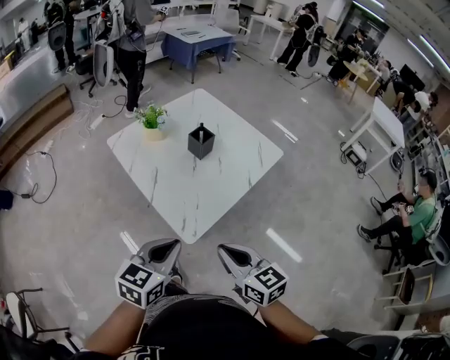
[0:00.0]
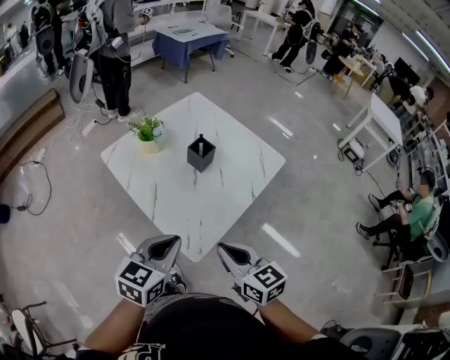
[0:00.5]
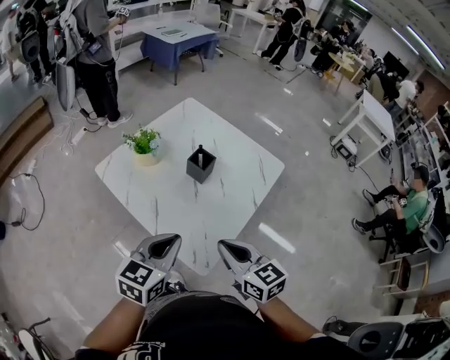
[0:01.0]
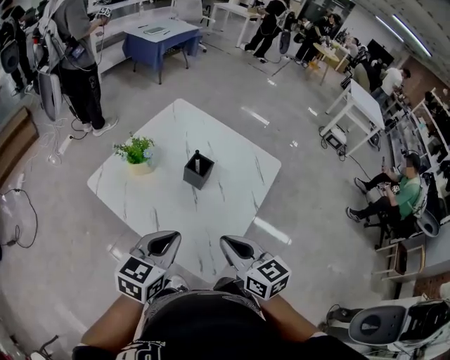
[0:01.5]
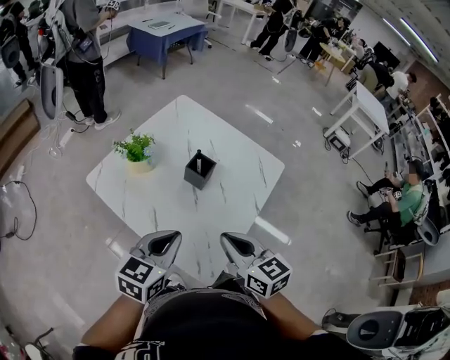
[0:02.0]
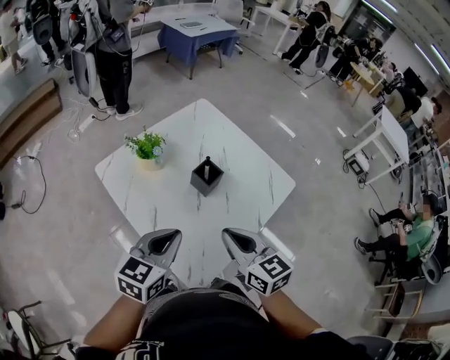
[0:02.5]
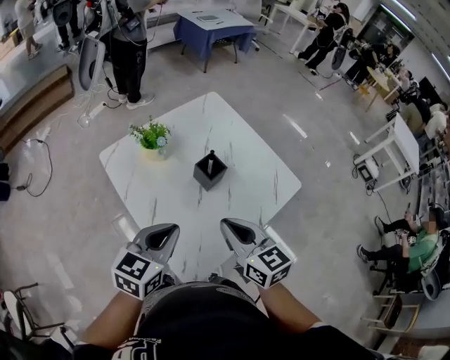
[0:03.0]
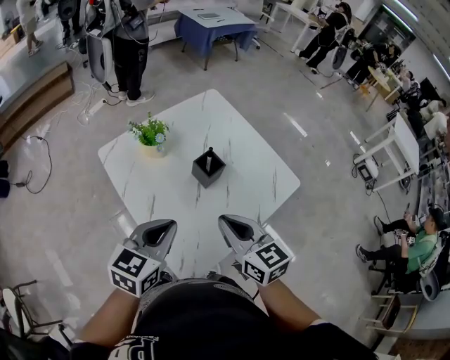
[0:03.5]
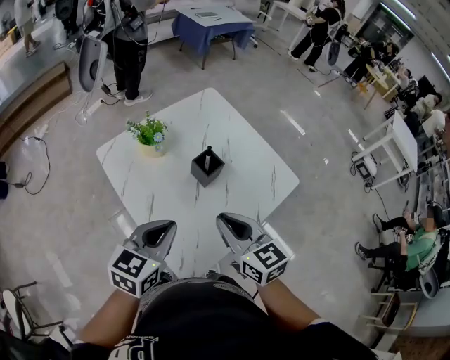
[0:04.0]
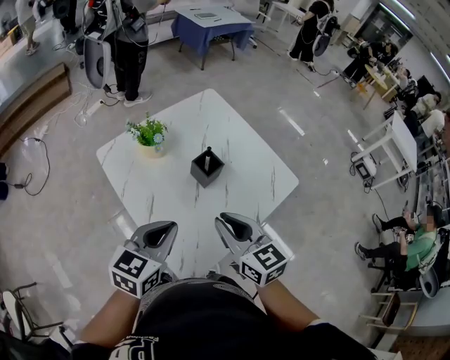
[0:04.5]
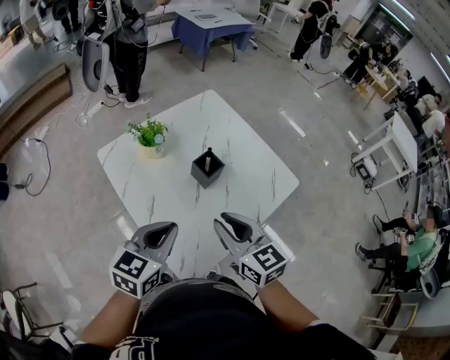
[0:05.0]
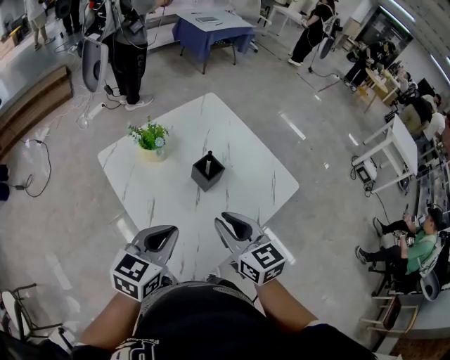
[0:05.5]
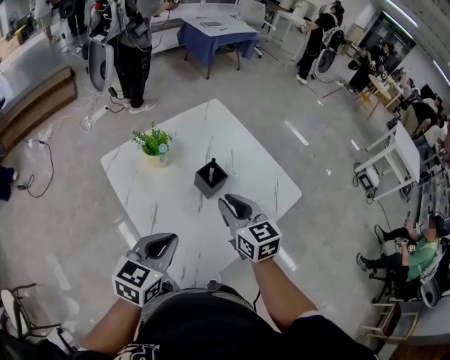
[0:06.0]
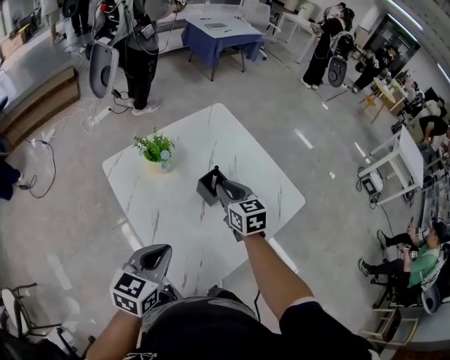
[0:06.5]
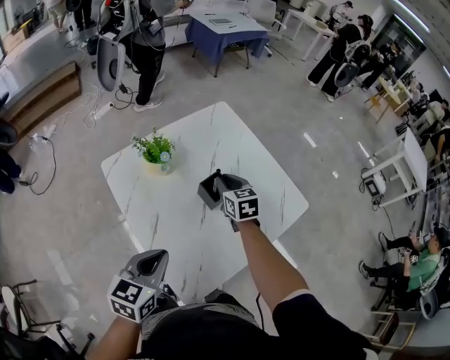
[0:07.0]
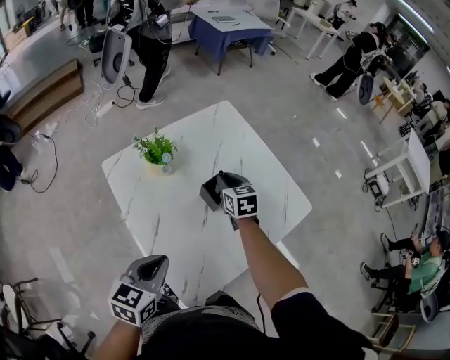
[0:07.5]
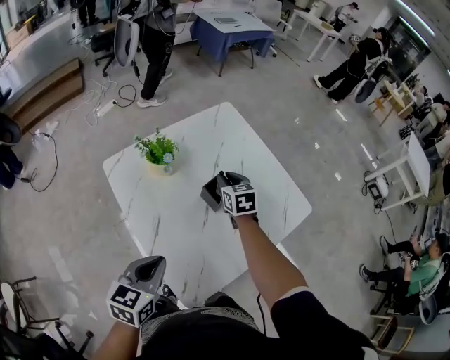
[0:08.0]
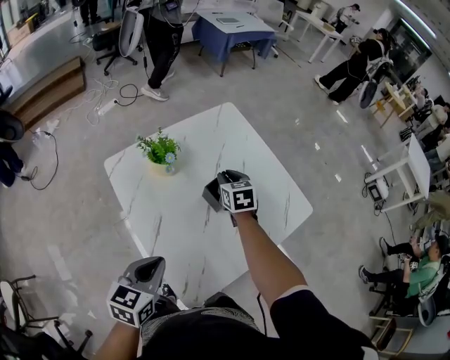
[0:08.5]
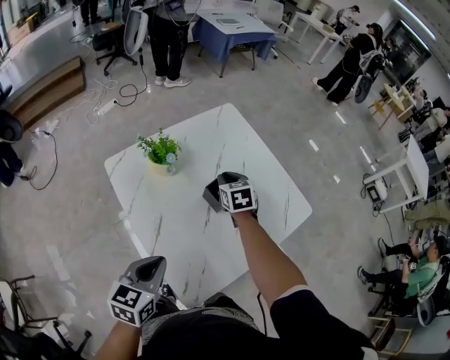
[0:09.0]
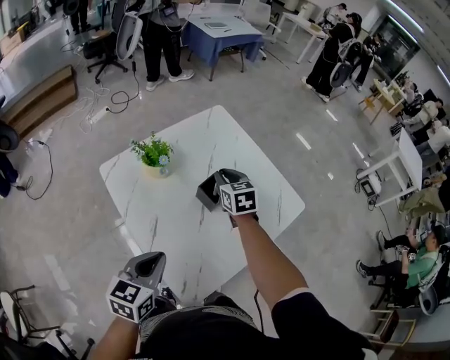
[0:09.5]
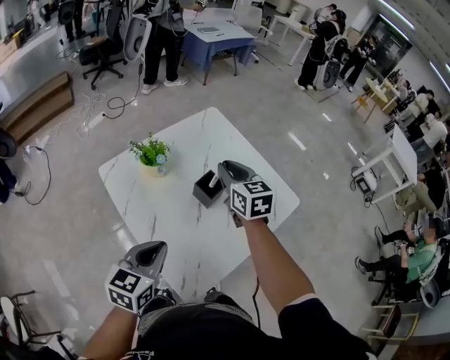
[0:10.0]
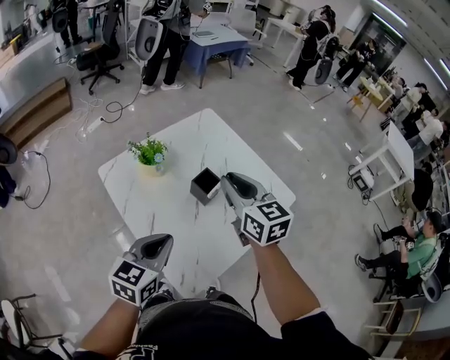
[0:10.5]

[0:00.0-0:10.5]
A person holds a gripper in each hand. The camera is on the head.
0:00.0 to 0:02.0: The two grippers go approximately 20 cm forward.
0:02.0 to 0:04.0: The right gripper goes roughly 5 cm forward.
0:04.0 to 0:06.5: The right gripper is displaced forward and downward by about 20 cm.
0:06.5 to 0:08.5: The right gripper travels forward and downward by approximately 10 cm.
0:08.5 to 0:10.5: The right gripper goes some 25 cm upward and backward, and rotates some 30 degrees, while the left gripper changes place by approximately 5 cm.

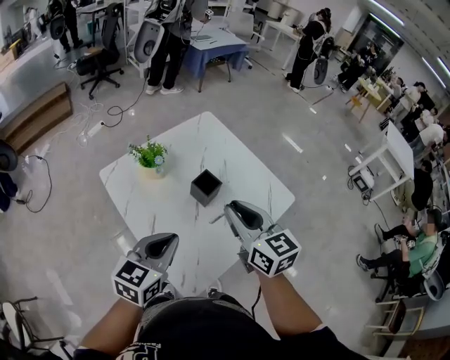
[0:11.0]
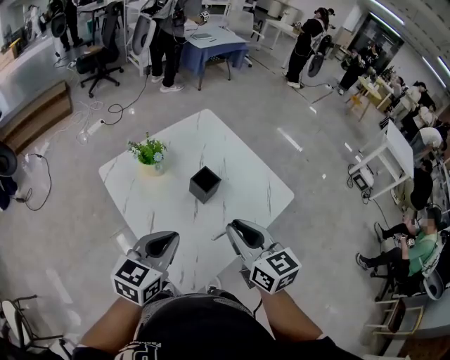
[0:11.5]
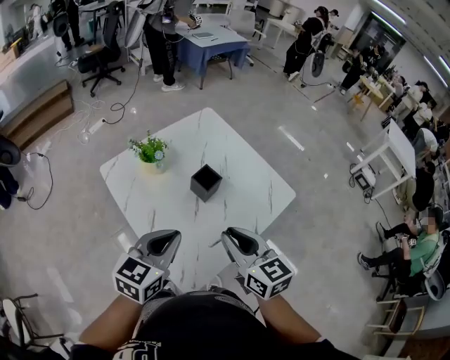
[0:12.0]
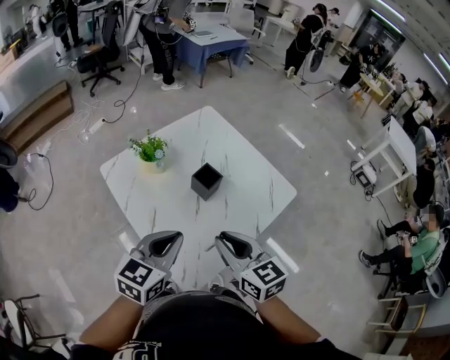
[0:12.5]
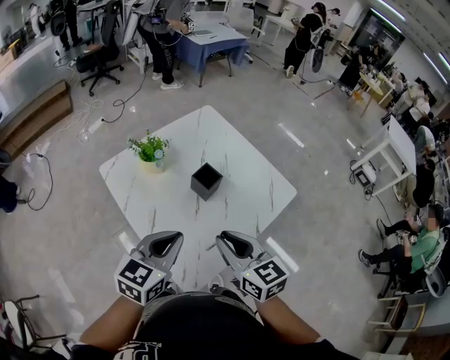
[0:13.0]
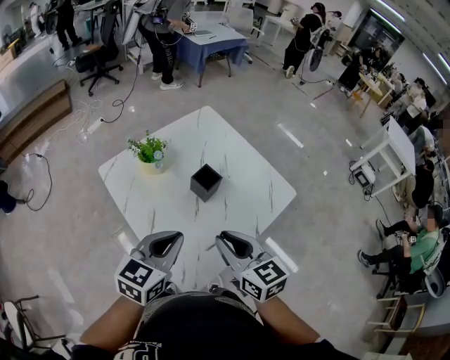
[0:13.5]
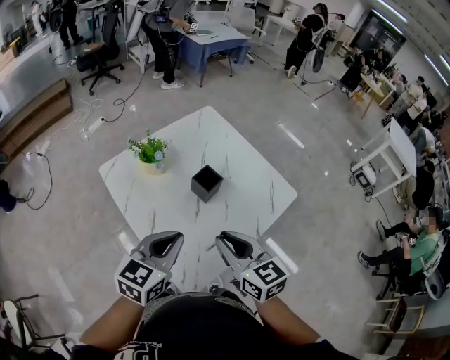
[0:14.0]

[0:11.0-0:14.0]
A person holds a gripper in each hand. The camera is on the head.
0:11.0 to 0:12.5: The right gripper goes some 10 cm backward and downward.
0:12.5 to 0:14.0: The two grippers keep their place.

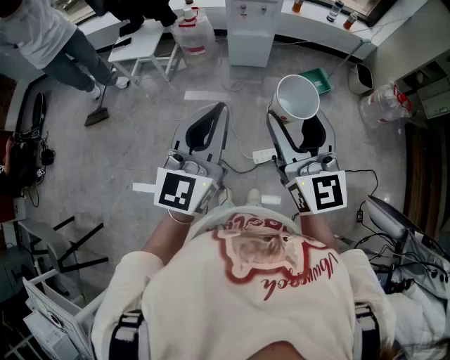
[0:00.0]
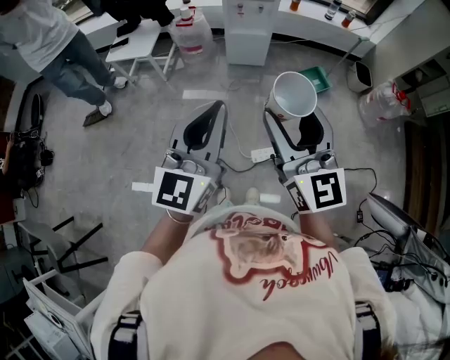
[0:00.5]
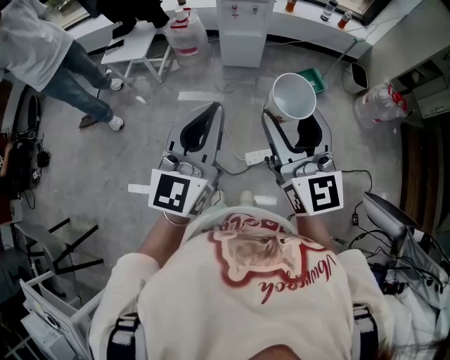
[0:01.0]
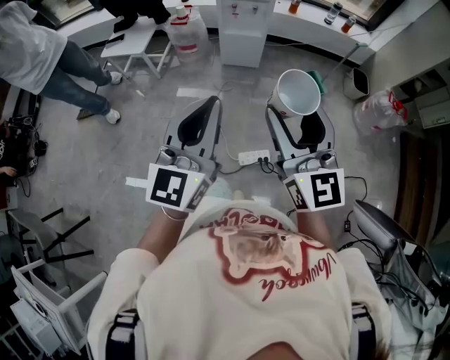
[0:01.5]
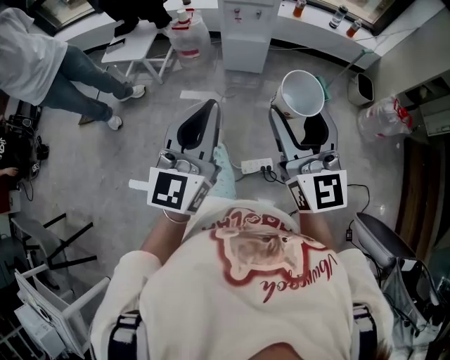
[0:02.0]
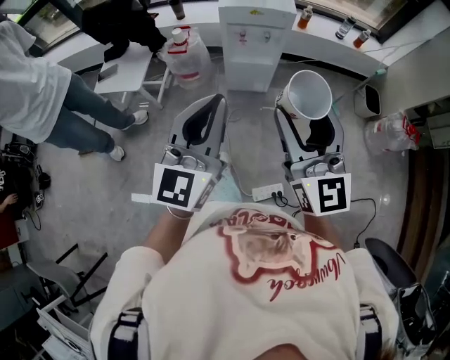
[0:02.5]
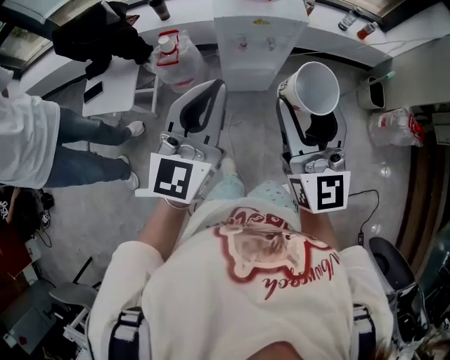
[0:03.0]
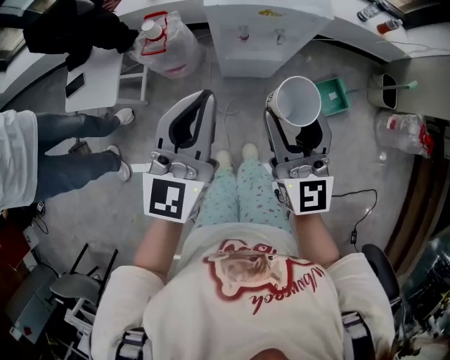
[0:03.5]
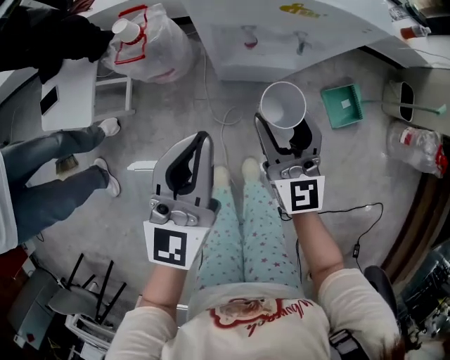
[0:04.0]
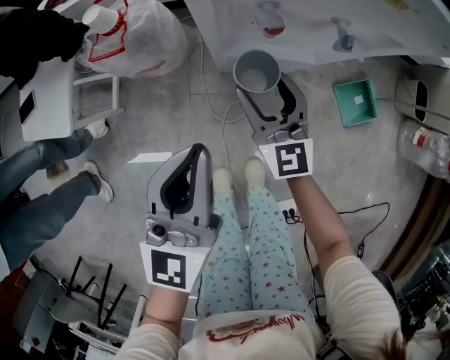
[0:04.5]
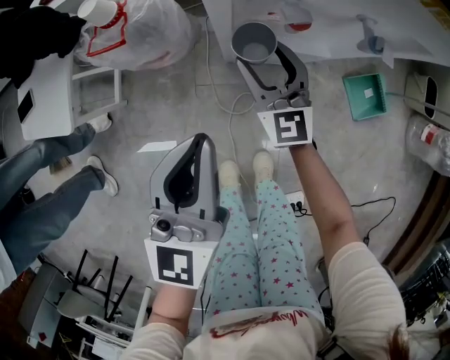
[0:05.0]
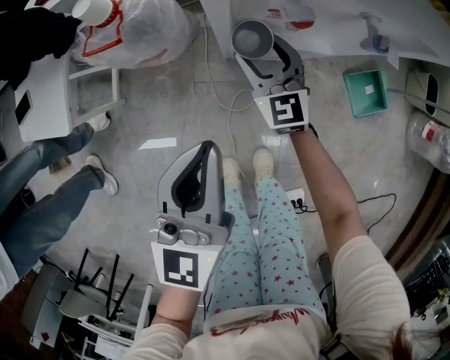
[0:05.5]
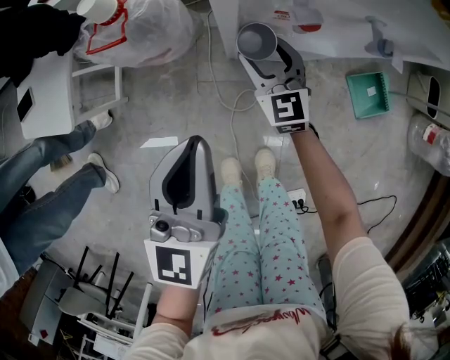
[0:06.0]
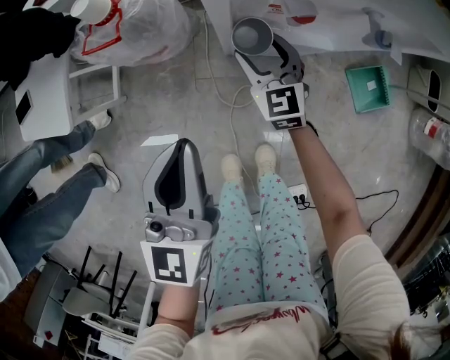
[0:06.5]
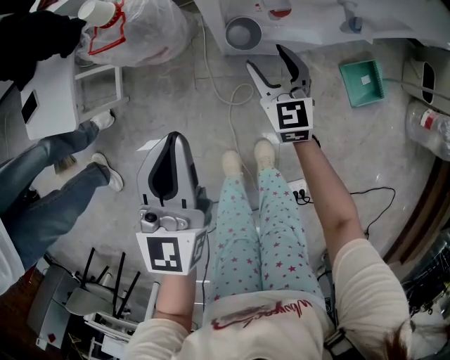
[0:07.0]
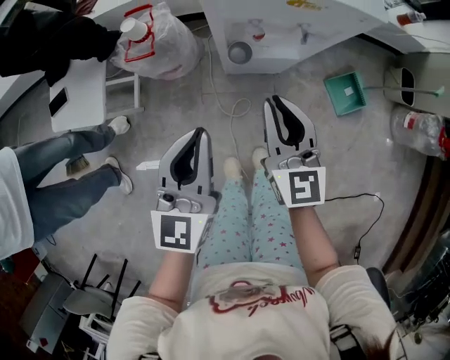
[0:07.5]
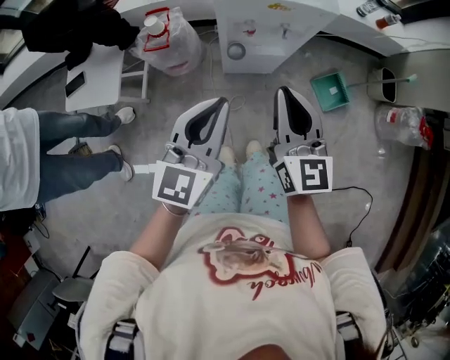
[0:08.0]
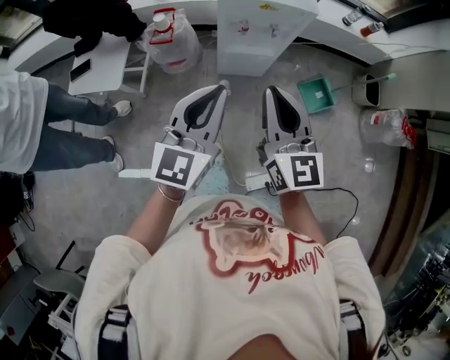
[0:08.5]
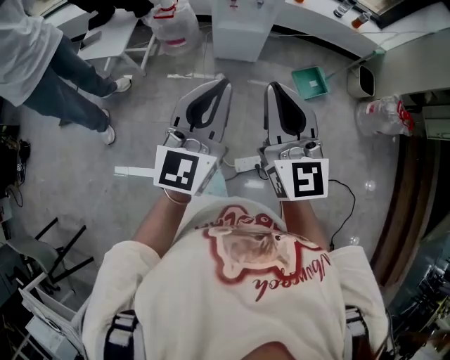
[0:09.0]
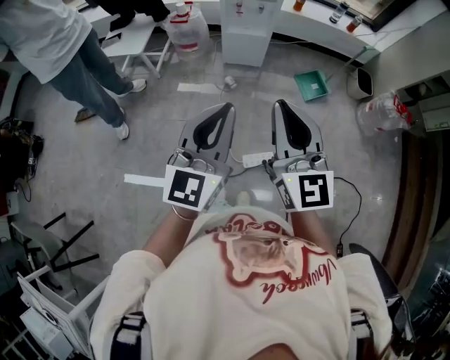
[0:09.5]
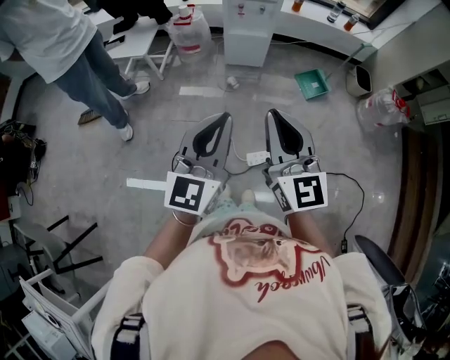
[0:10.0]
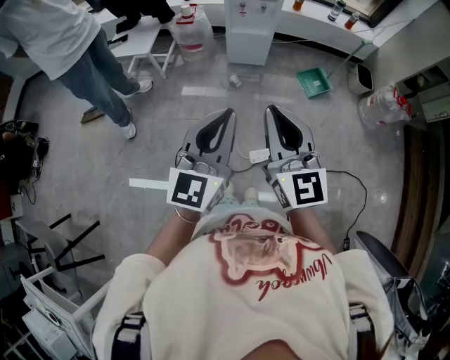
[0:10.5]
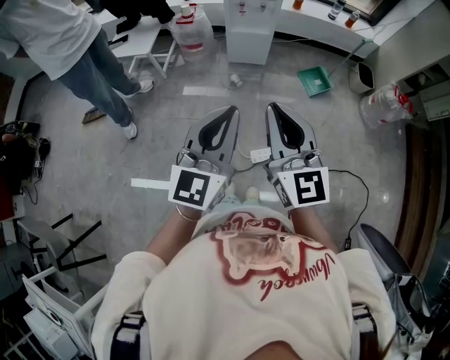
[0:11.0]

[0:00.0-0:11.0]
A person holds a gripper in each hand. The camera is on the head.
0:00.0 to 0:02.0: Both grippers move forward and to the right, about 10 cm.
0:02.0 to 0:03.5: The two grippers travel together, forward, approximately 50 cm.
0:03.5 to 0:05.5: The right gripper moves downward and forward, about 50 cm, and turns by some 30 degrees, while the left gripper heads downward, covering roughly 30 cm.
0:05.5 to 0:07.5: The right gripper goes approximately 30 cm upward and backward, changes its angle by roughly 20 degrees, and closes up, while the left gripper travels upward by some 15 cm.
0:07.5 to 0:09.0: The right gripper heads backward and upward, covering some 50 cm. Meanwhile the left gripper heads backward, upward and to the right, covering about 40 cm.
0:09.0 to 0:11.0: Both grippers travel together backward, about 20 cm.

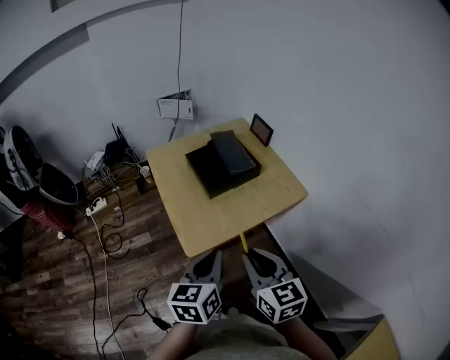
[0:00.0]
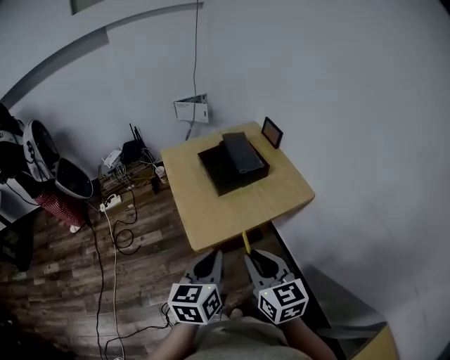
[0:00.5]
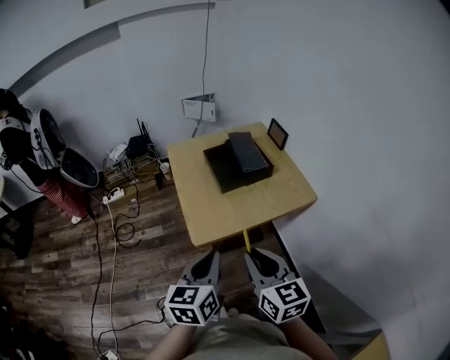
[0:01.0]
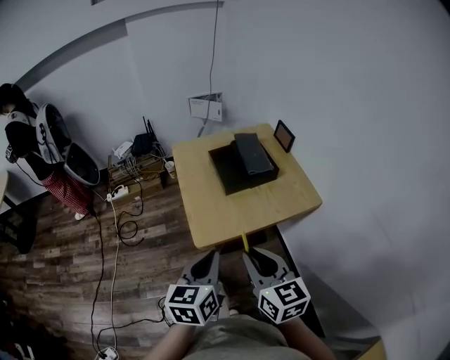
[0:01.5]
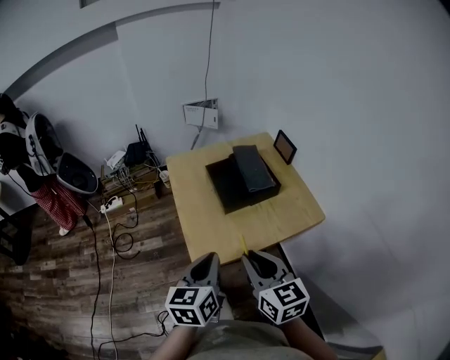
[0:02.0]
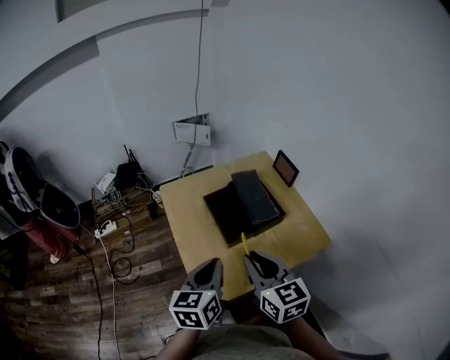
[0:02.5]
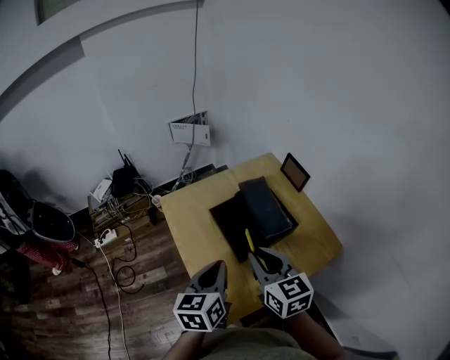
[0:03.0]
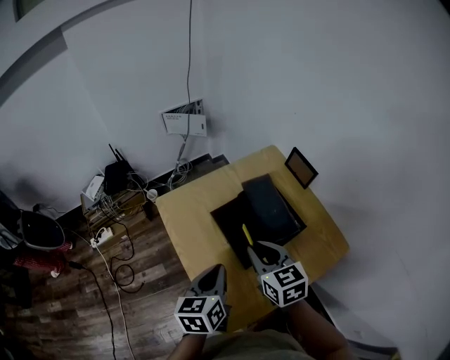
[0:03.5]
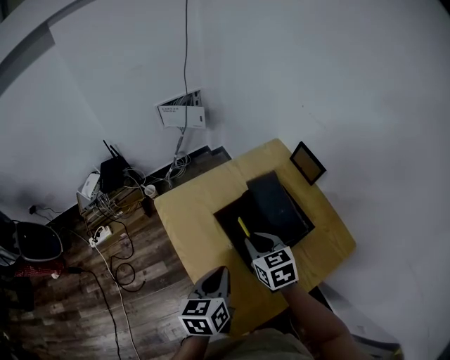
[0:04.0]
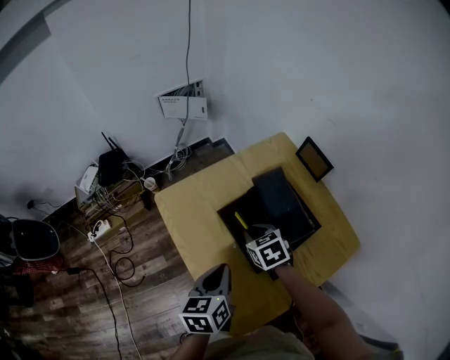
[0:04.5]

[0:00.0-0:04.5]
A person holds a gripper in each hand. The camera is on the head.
0:00.0 to 0:02.0: The left gripper changes place by roughly 5 cm. Meanwhile the right gripper moves forward, approximately 5 cm.
0:02.0 to 0:04.5: The left gripper travels forward by approximately 25 cm, and turns by approximately 20 degrees. The right gripper moves forward and downward, about 40 cm, and angles its fingers downward, by roughly 40 degrees.
